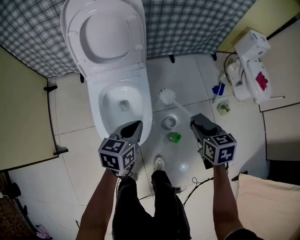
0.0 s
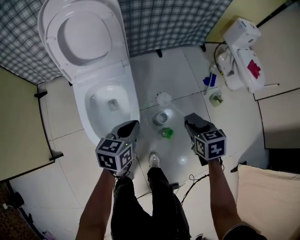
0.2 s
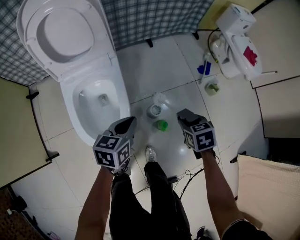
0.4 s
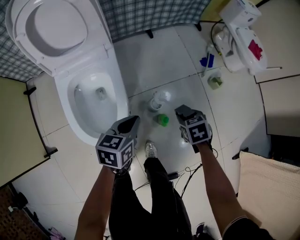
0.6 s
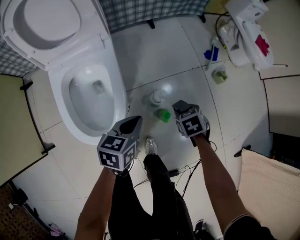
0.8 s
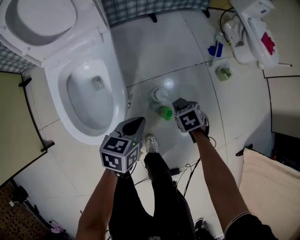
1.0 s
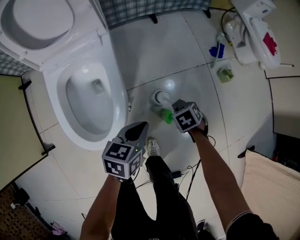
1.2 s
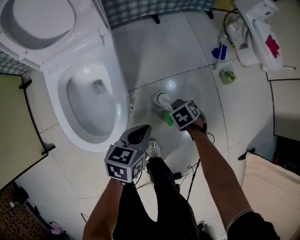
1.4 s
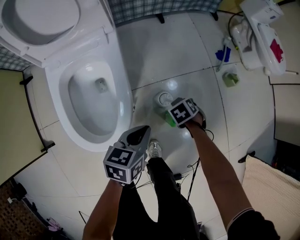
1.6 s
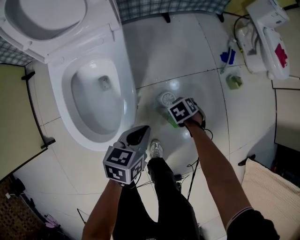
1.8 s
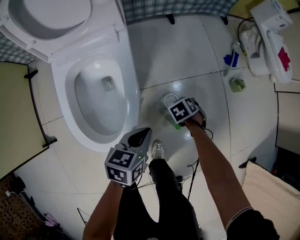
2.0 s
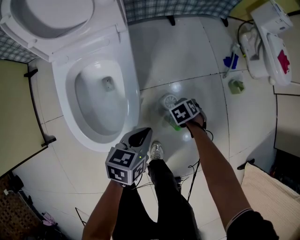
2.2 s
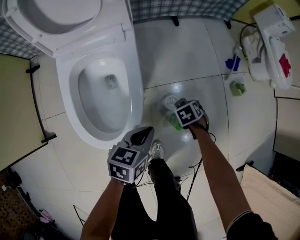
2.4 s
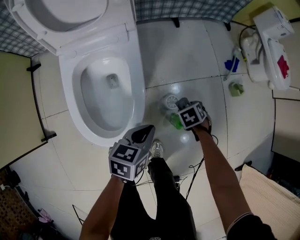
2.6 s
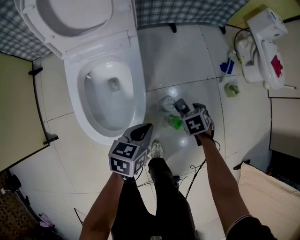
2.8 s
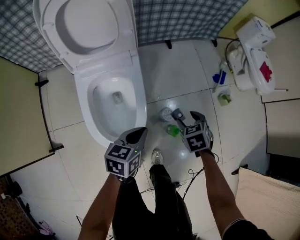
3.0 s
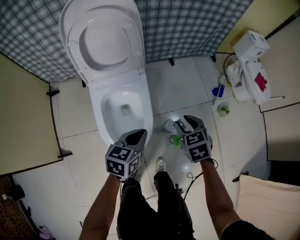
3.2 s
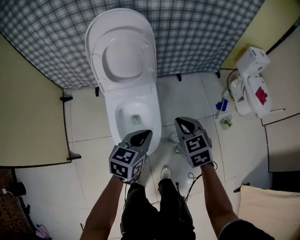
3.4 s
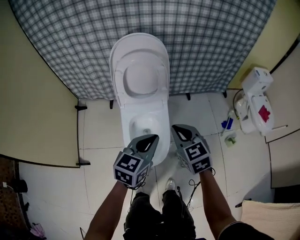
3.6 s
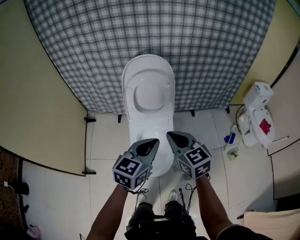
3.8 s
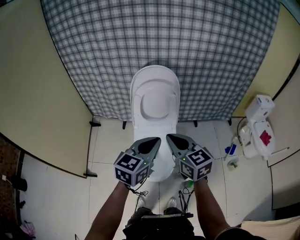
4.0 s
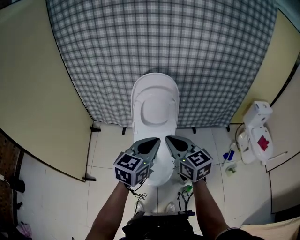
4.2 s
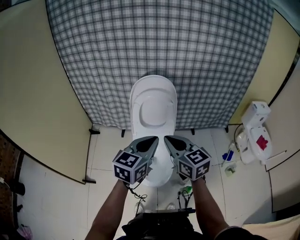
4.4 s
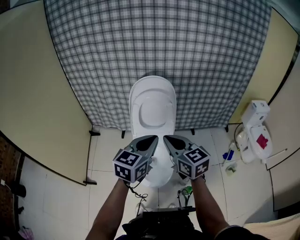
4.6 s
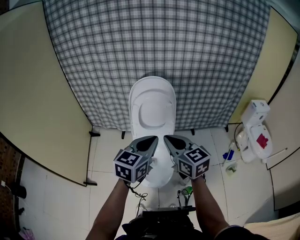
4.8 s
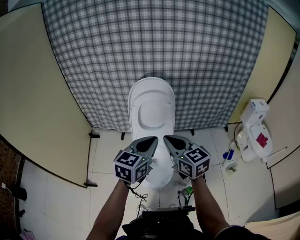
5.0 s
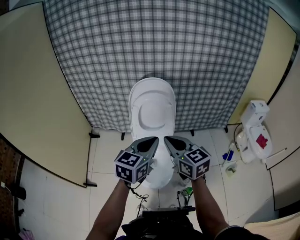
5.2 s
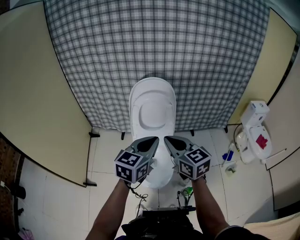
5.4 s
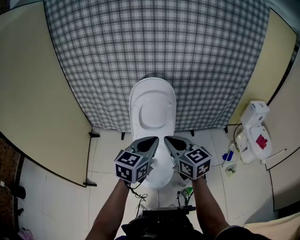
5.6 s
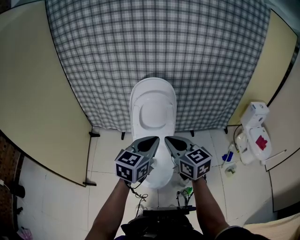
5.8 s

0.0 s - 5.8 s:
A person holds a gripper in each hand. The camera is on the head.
0.0 s - 1.4 s: The right gripper is displaced downward by some 30 cm, and angles its fingers downward, by roughly 30 degrees, while the left gripper travels downward by some 15 cm.
1.4 s - 2.8 s: The right gripper moves upward, approximately 5 cm, and opens its fingers; the left gripper moves roughly 5 cm.
2.8 s - 4.4 s: The two grippers go some 50 cm upward. The right gripper points its fingers some 60 degrees further upward, and closes. The left gripper turns by some 40 degrees.
4.4 s - 5.8 s: The grippers make only small movements.

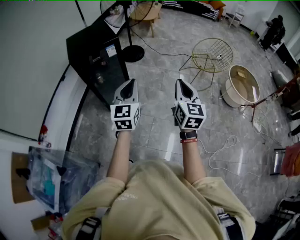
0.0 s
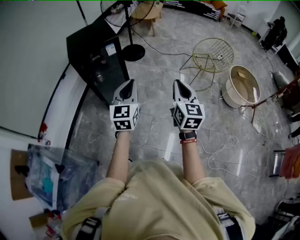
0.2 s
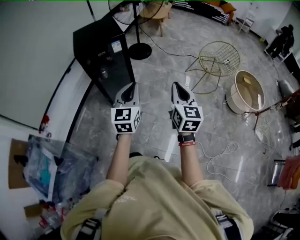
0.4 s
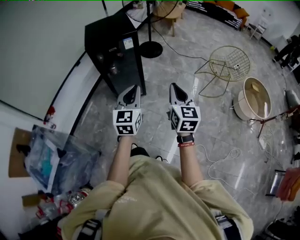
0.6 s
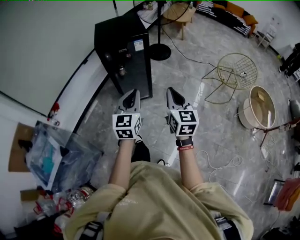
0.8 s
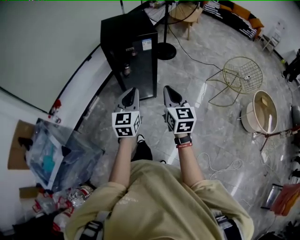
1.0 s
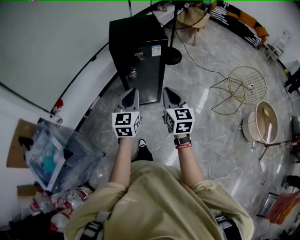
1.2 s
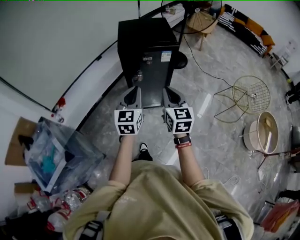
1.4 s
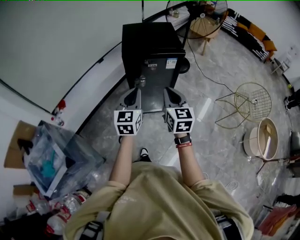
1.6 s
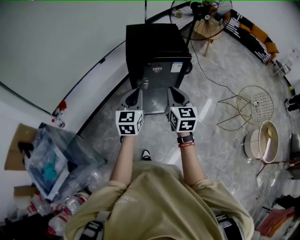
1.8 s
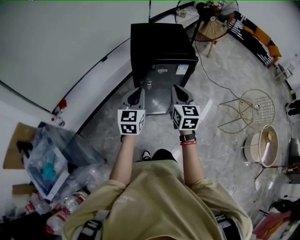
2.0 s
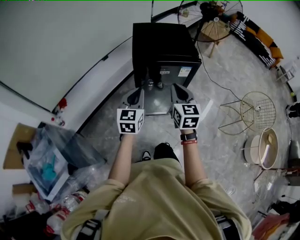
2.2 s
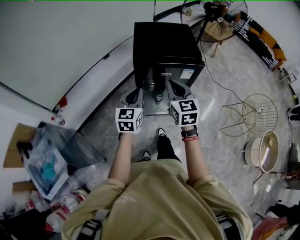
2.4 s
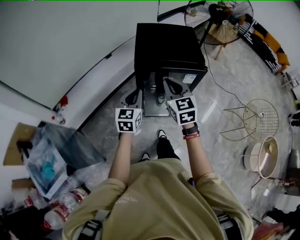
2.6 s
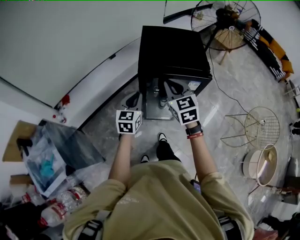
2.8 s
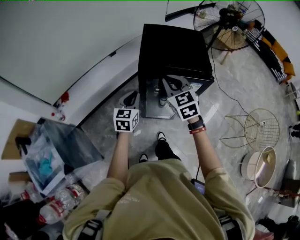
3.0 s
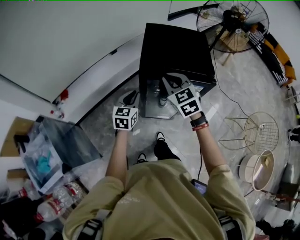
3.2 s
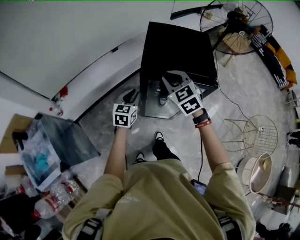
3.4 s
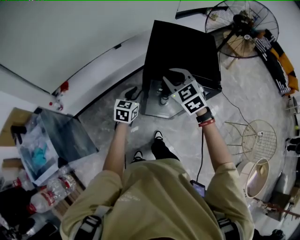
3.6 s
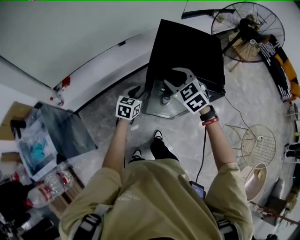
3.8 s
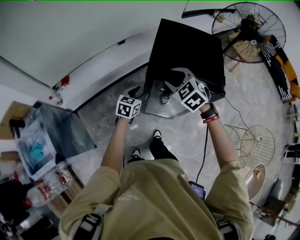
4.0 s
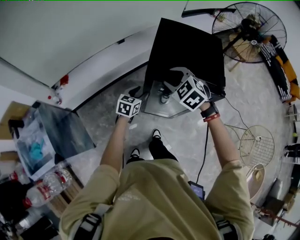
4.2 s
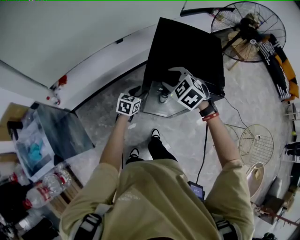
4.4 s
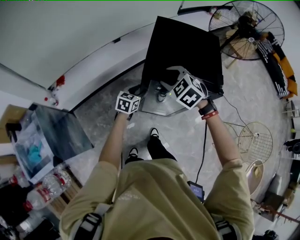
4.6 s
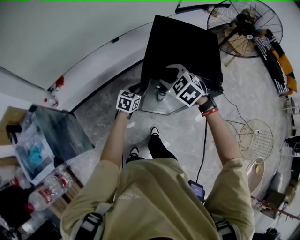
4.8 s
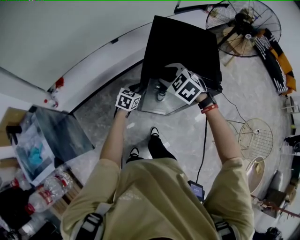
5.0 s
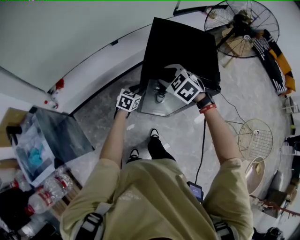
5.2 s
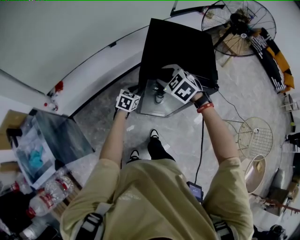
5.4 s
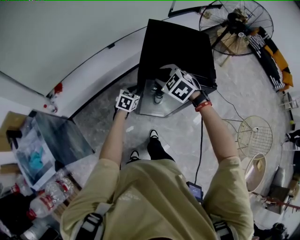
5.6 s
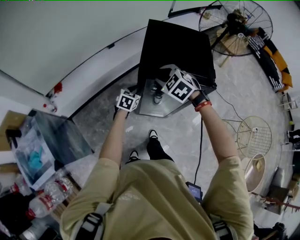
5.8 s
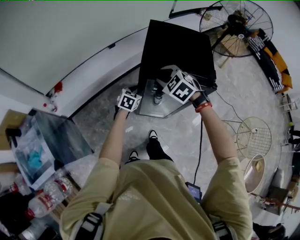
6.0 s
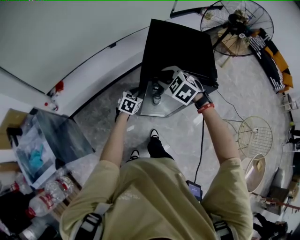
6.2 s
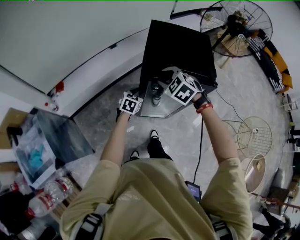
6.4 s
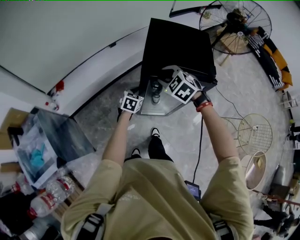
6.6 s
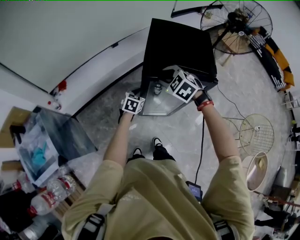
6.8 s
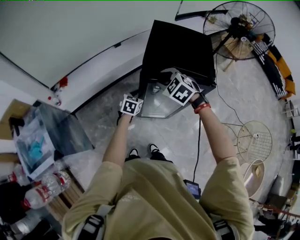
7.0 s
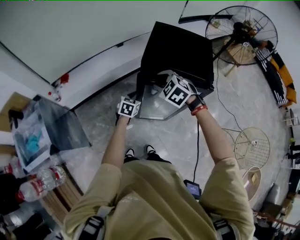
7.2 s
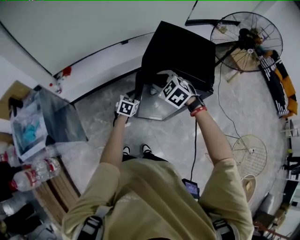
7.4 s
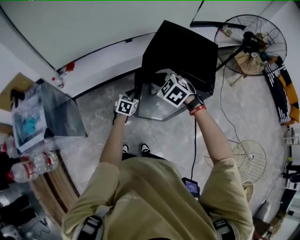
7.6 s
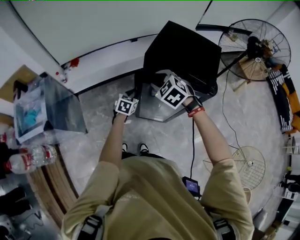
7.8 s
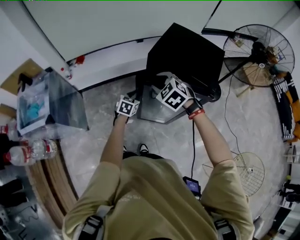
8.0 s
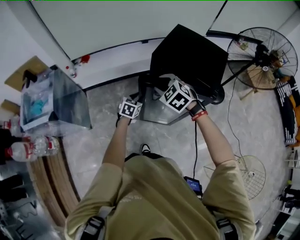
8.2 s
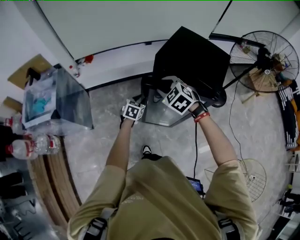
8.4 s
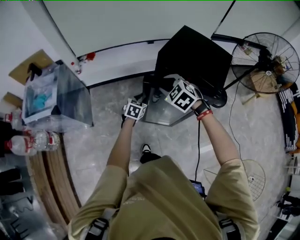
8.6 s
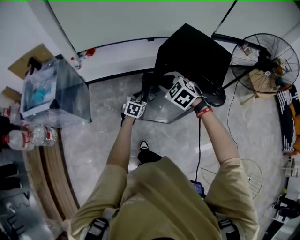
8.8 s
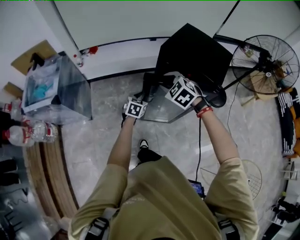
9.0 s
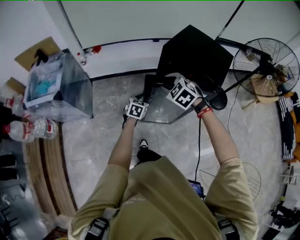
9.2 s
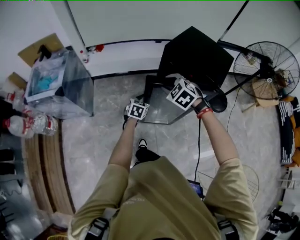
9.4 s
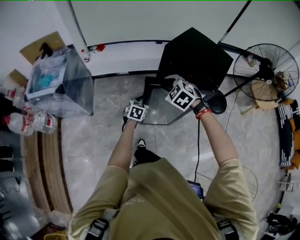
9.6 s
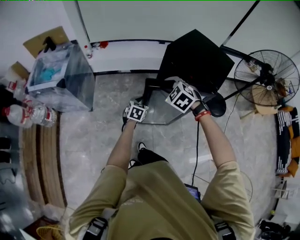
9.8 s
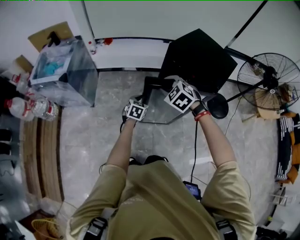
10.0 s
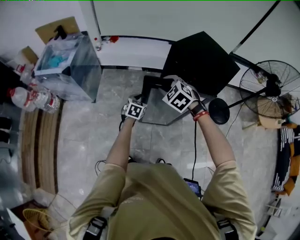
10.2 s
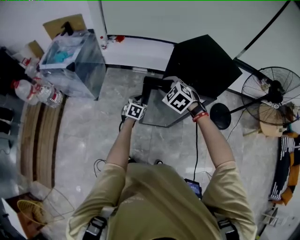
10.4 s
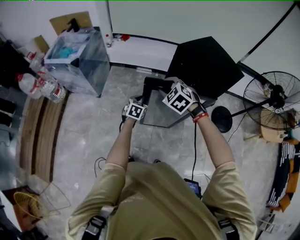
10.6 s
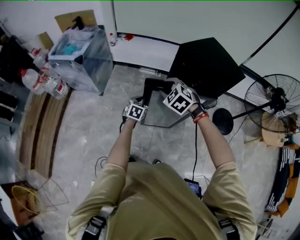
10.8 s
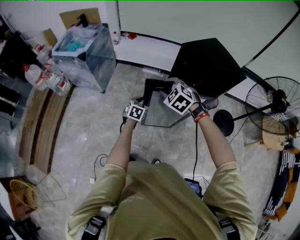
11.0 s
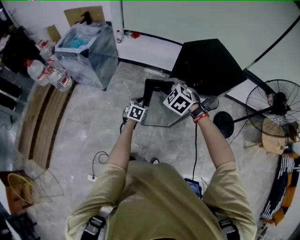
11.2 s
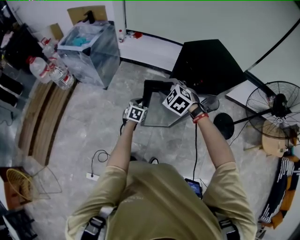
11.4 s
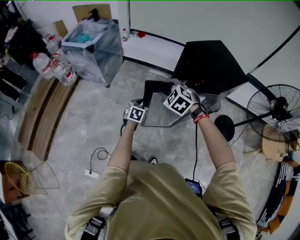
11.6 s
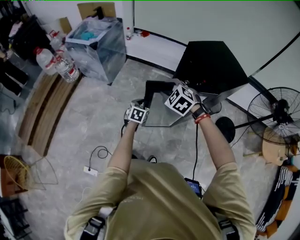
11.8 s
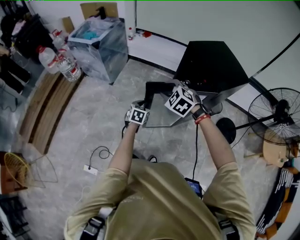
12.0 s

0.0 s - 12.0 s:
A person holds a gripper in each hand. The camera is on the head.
0.0 s - 1.6 s: Both grippers travel together to the left and forward, about 35 cm. The left gripper rotates roughly 20 degrees, while the right gripper swivels some 30 degrees.
1.6 s - 3.0 s: The left gripper is displaced forward, downward and to the left by approximately 25 cm, while the right gripper goes about 25 cm forward, and rotates about 30 degrees.
3.0 s - 4.4 s: The left gripper moves downward and forward, about 15 cm, and opens; the right gripper heads forward and downward, covering some 10 cm, swivels about 40 degrees, and opens.
4.4 s - 6.0 s: The grippers stay close to where they were, moving slightly.
6.0 s - 7.6 s: Both grippers move backward, some 5 cm.
7.6 s - 9.0 s: The two grippers go roughly 10 cm backward.
9.0 s - 10.4 s: The two grippers go roughly 10 cm backward.
10.4 s - 12.0 s: Both grippers move backward, approximately 15 cm.

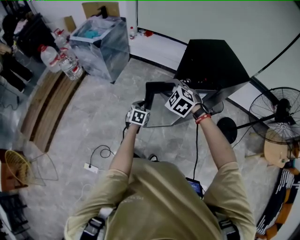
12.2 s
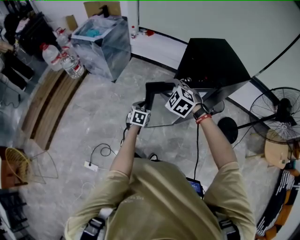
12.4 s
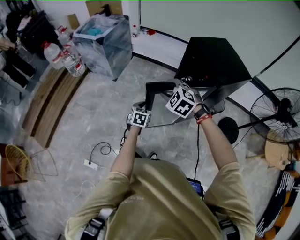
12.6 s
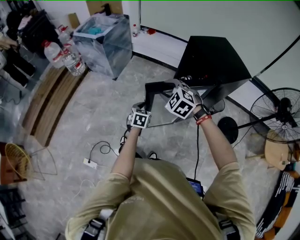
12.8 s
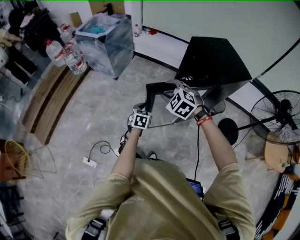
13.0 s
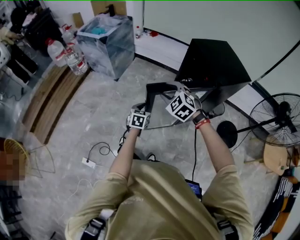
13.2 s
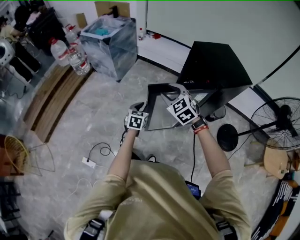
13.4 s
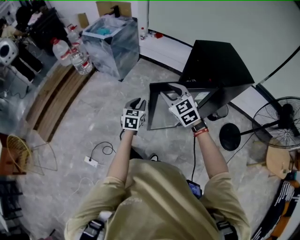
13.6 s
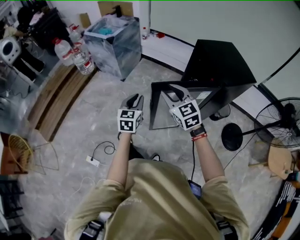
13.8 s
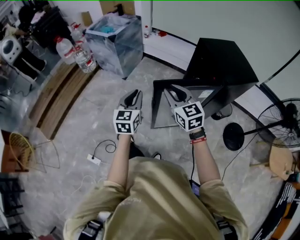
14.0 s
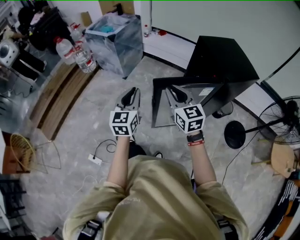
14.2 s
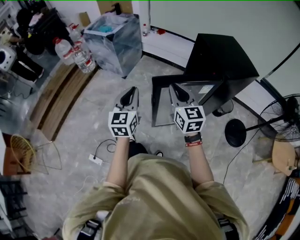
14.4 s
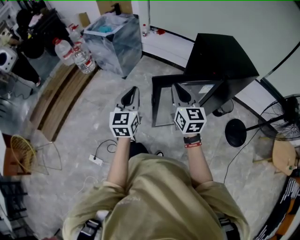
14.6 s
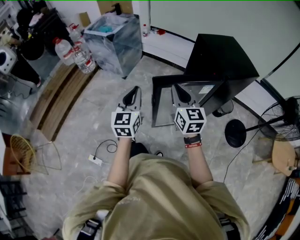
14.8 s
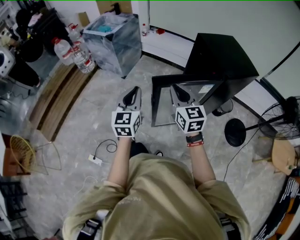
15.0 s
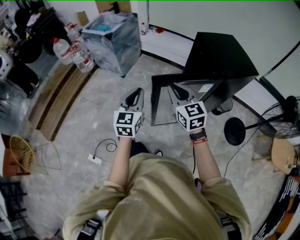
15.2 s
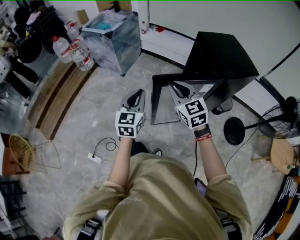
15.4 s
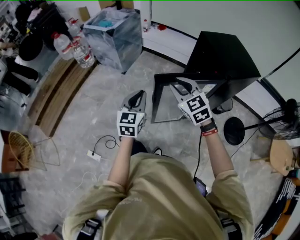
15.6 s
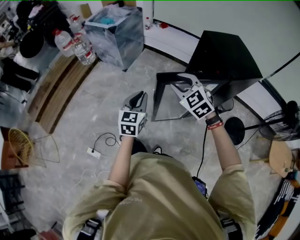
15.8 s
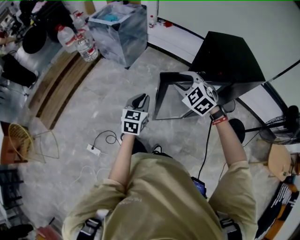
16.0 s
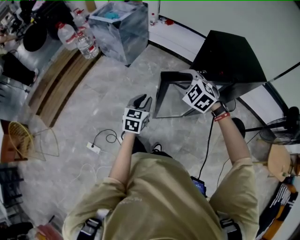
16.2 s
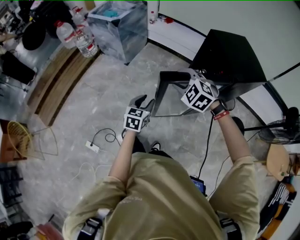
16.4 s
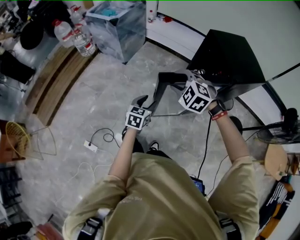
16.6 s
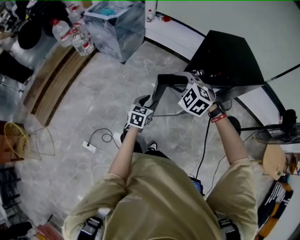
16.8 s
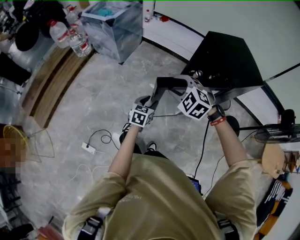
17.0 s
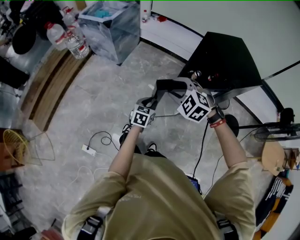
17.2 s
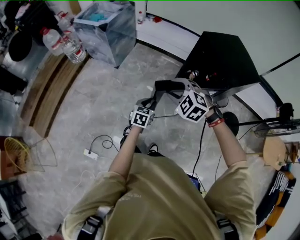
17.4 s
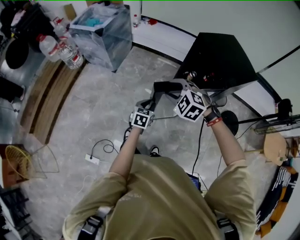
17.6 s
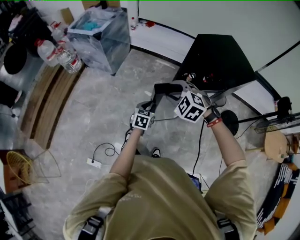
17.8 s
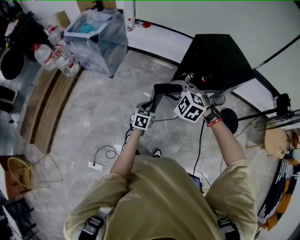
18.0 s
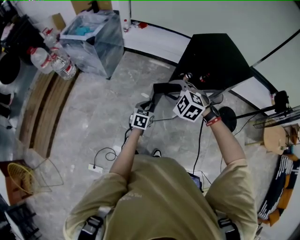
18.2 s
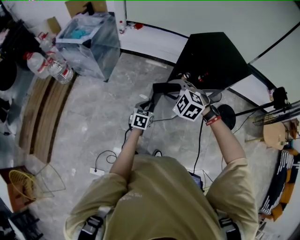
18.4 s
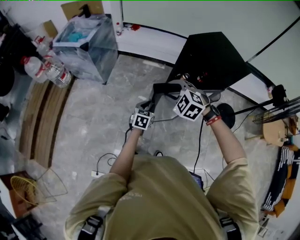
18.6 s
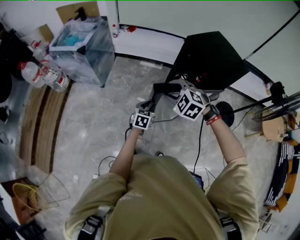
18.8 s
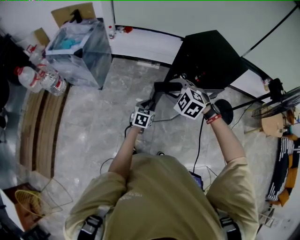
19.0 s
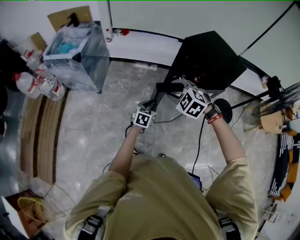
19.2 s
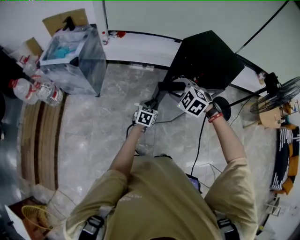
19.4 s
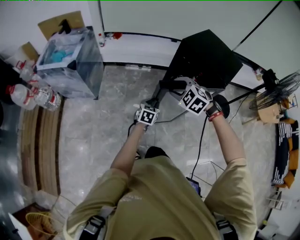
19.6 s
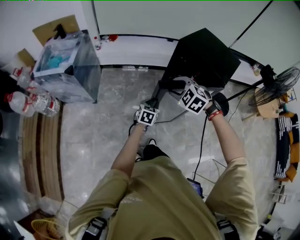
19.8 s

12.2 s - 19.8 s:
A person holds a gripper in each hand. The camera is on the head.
12.2 s - 13.8 s: The left gripper heads upward, to the left and backward, covering some 15 cm, and rotates approximately 30 degrees; the right gripper travels backward and upward by roughly 10 cm, and turns by roughly 40 degrees.
13.8 s - 15.2 s: The right gripper closes up. The left gripper moves upward, roughly 5 cm.
15.2 s - 16.8 s: The left gripper is displaced downward by roughly 20 cm, swivels about 30 degrees, and opens. Meanwhile the right gripper moves downward, some 5 cm, angles its fingers downward, by some 30 degrees, and opens.
16.8 s - 18.2 s: The left gripper goes some 10 cm forward, and closes. The right gripper goes some 5 cm forward.
18.2 s - 19.8 s: The two grippers go some 10 cm forward. The right gripper rotates about 20 degrees.
